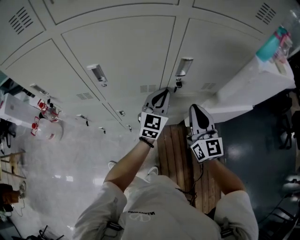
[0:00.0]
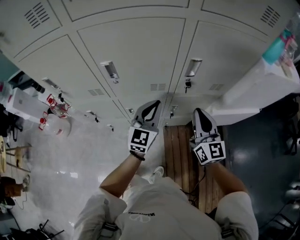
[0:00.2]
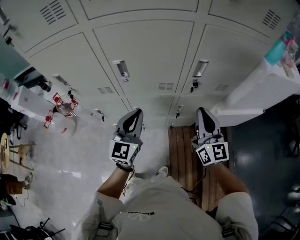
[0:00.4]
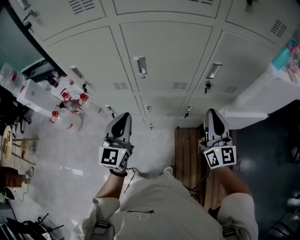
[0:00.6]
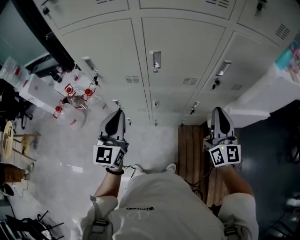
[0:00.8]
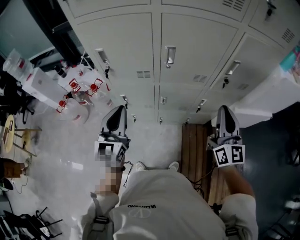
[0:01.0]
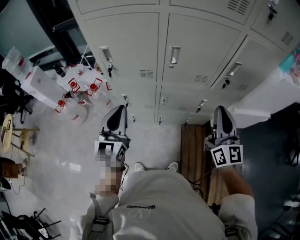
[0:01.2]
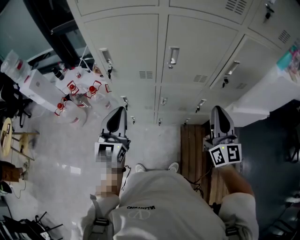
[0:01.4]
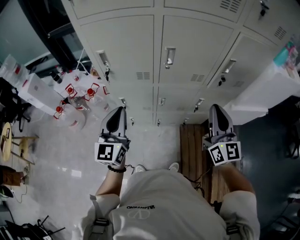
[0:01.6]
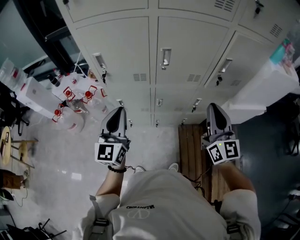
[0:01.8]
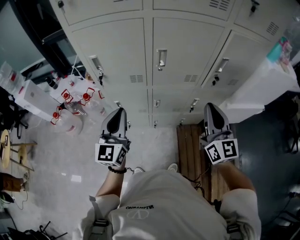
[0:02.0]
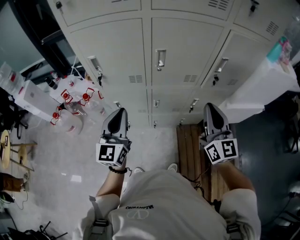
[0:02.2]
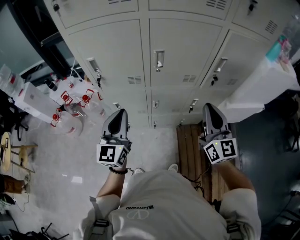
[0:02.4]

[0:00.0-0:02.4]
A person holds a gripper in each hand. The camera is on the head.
0:00.0 to 0:01.2: The left gripper heads to the left and backward, covering roughly 50 cm, and rotates about 20 degrees. Meanwhile the right gripper goes some 20 cm to the left, backward and upward.
0:01.2 to 0:02.4: The grippers stay close to where they were, moving slightly.

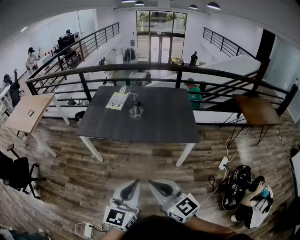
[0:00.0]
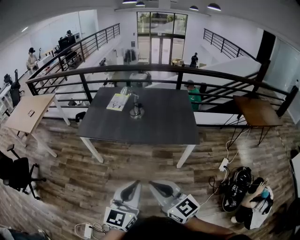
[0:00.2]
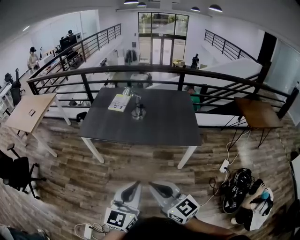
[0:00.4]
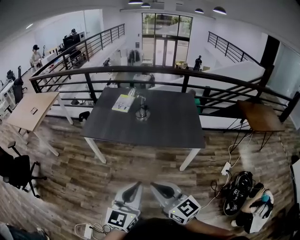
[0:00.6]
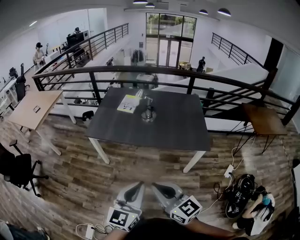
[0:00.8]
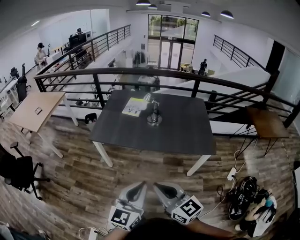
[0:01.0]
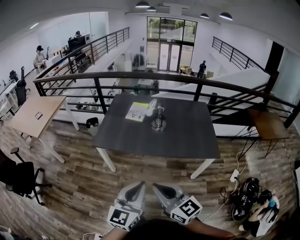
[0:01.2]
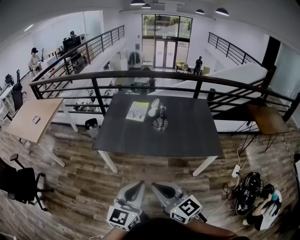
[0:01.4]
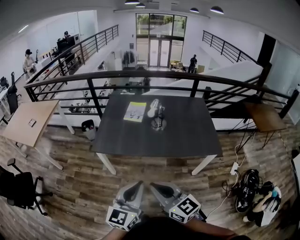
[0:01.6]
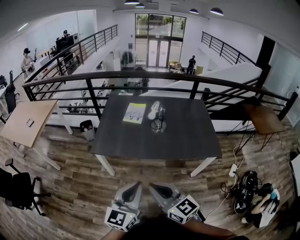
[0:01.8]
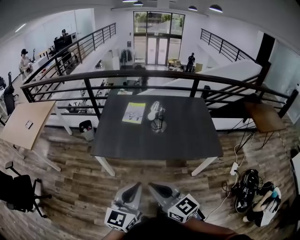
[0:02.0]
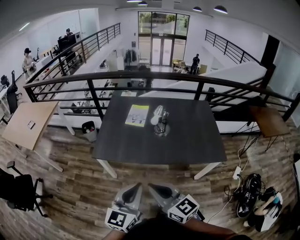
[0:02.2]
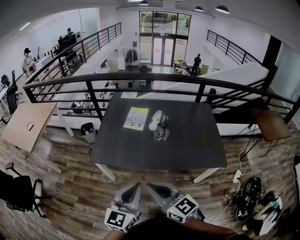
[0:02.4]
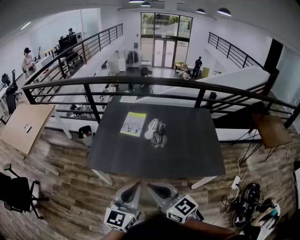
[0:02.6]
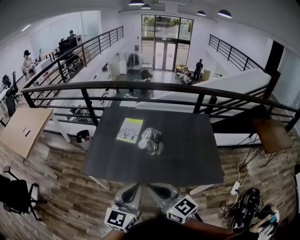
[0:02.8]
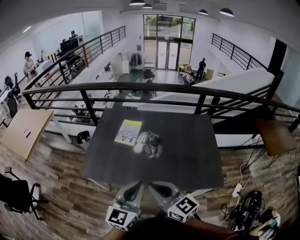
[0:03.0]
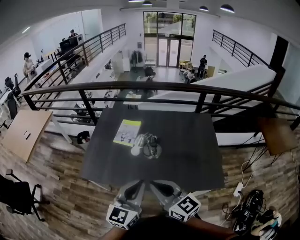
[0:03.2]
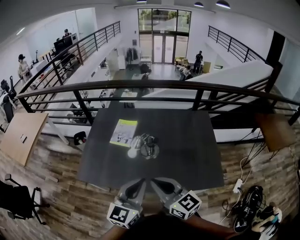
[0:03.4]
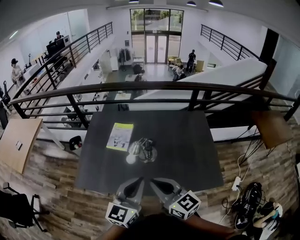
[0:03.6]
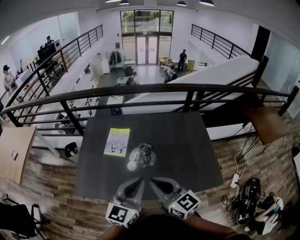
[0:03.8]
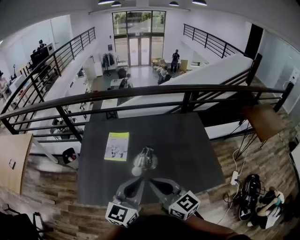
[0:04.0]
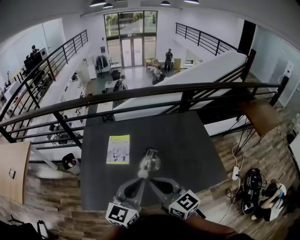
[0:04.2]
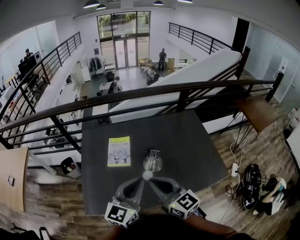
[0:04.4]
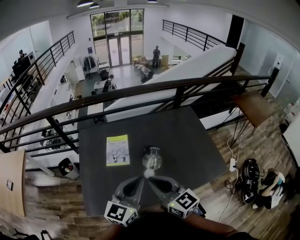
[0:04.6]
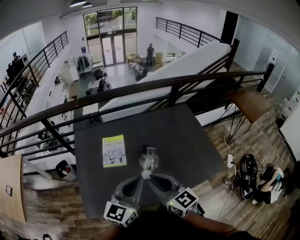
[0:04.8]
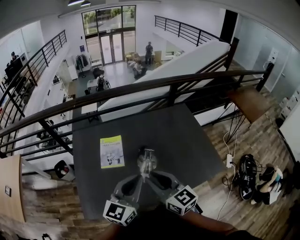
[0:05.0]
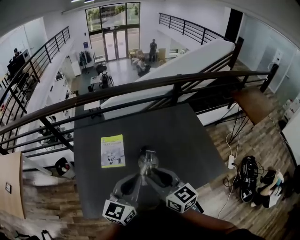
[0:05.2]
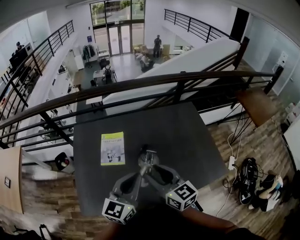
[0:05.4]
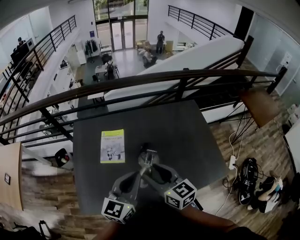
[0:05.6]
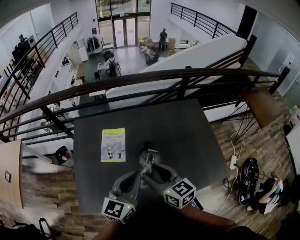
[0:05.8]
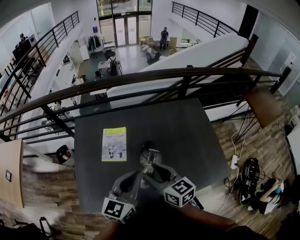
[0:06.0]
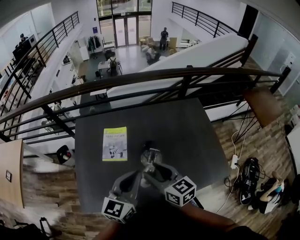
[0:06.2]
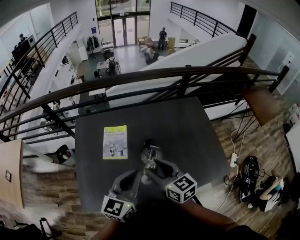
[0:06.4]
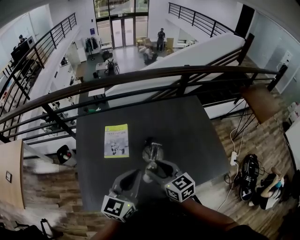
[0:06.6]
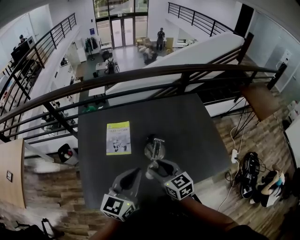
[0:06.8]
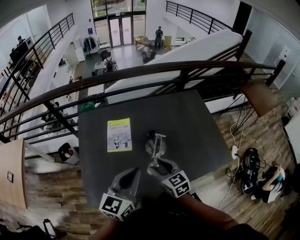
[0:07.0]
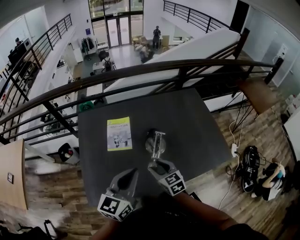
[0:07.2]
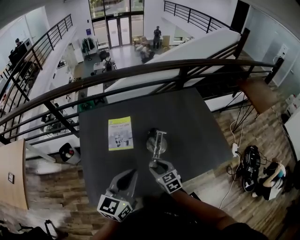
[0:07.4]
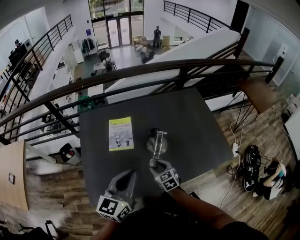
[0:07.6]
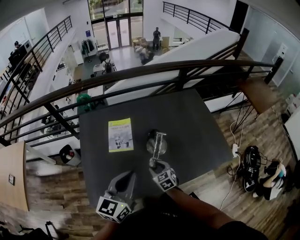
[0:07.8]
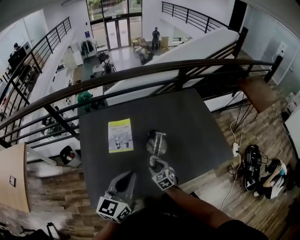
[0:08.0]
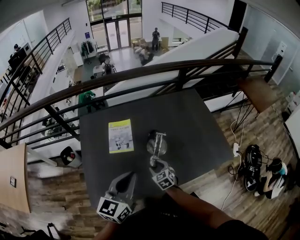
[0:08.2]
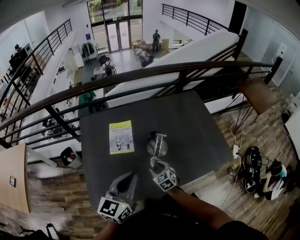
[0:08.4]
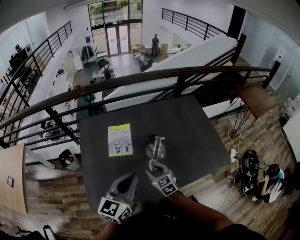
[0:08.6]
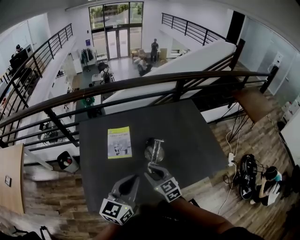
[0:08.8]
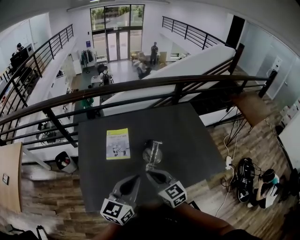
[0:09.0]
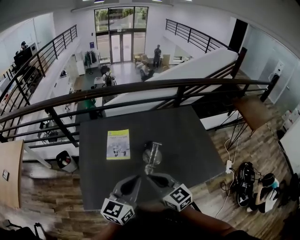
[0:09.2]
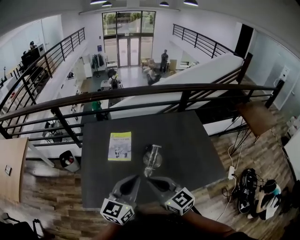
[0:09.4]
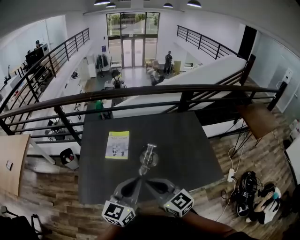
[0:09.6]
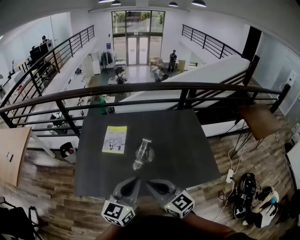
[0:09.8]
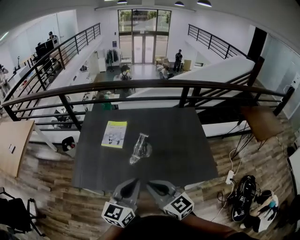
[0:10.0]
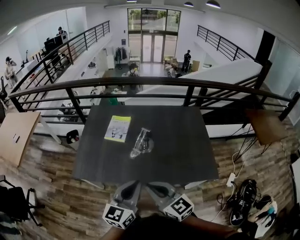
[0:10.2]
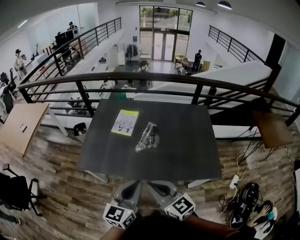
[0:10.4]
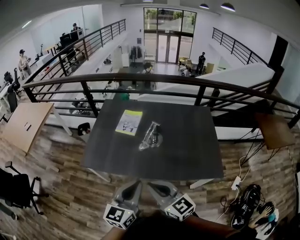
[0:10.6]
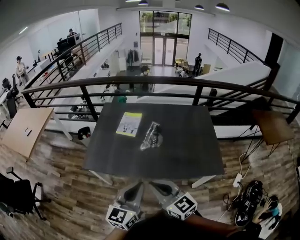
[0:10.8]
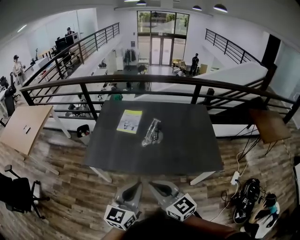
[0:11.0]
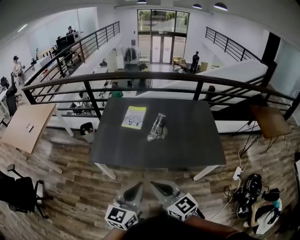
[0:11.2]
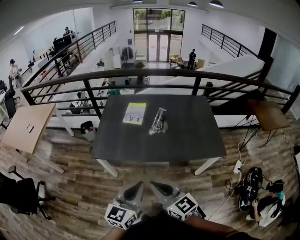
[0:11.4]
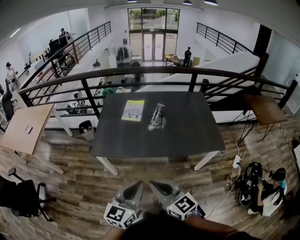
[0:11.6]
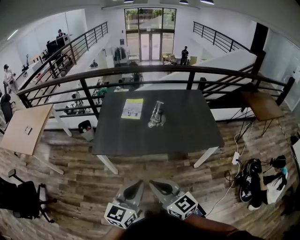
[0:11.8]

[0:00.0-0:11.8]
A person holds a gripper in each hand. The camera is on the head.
0:00.0 to 0:01.4: Both grippers travel together to the left and forward, some 25 cm.
0:01.4 to 0:03.0: Both grippers move forward and to the right, some 30 cm.
0:03.0 to 0:04.4: Both grippers travel together forward, roughly 20 cm. The left gripper changes its angle by about 20 degrees. The right gripper swivels about 20 degrees.
0:04.4 to 0:06.0: The right gripper heads forward and downward, covering roughly 15 cm, and opens up, while the left gripper heads forward, covering some 10 cm.
0:06.0 to 0:07.4: The right gripper shifts roughly 20 cm downward, and rotates roughly 20 degrees, while the left gripper goes approximately 10 cm backward and to the left.
0:07.4 to 0:08.8: The right gripper travels upward by roughly 10 cm.
0:08.8 to 0:10.4: The right gripper goes about 30 cm backward, upward and to the right, turns by approximately 30 degrees, and closes up. Meanwhile the left gripper heads backward and to the right, covering roughly 25 cm, and swivels about 20 degrees.
0:10.4 to 0:11.8: The two grippers go some 25 cm backward and to the left.

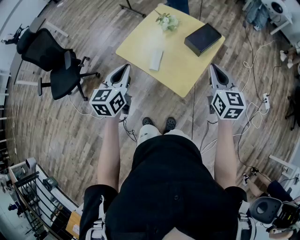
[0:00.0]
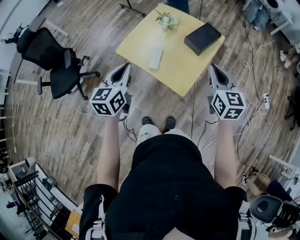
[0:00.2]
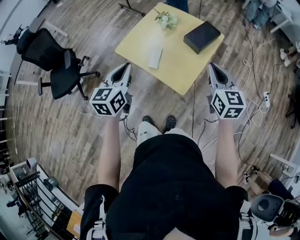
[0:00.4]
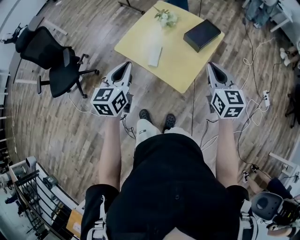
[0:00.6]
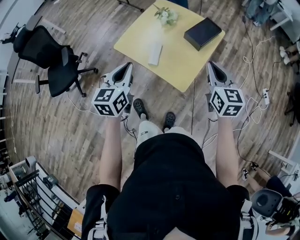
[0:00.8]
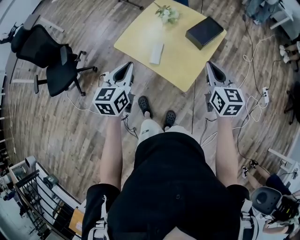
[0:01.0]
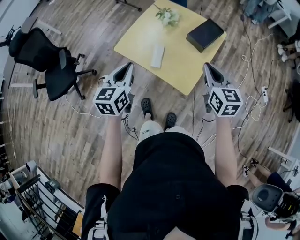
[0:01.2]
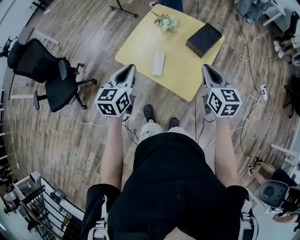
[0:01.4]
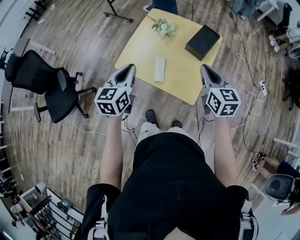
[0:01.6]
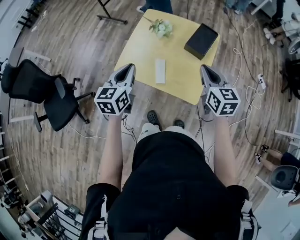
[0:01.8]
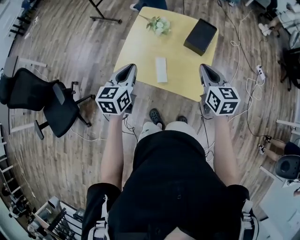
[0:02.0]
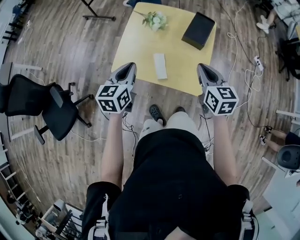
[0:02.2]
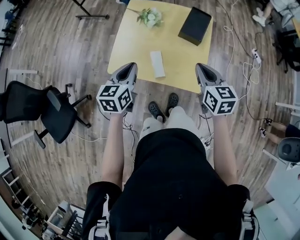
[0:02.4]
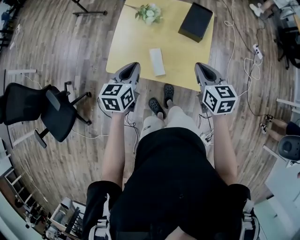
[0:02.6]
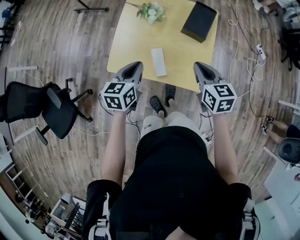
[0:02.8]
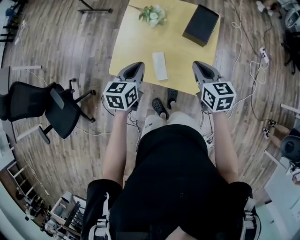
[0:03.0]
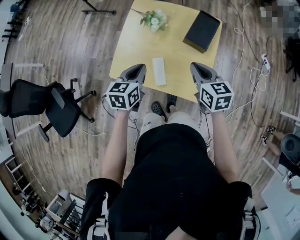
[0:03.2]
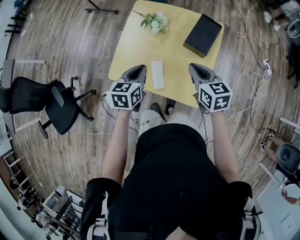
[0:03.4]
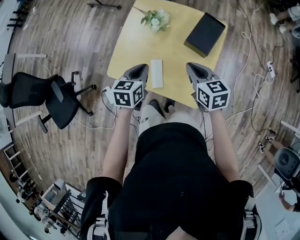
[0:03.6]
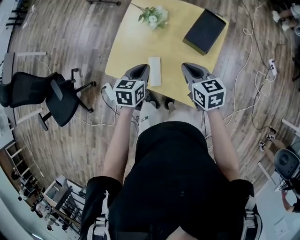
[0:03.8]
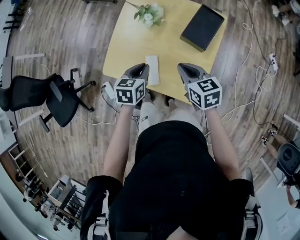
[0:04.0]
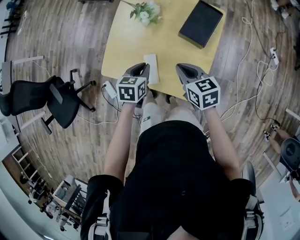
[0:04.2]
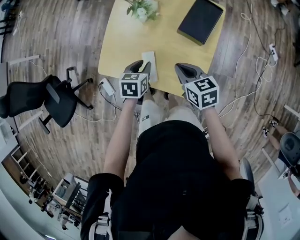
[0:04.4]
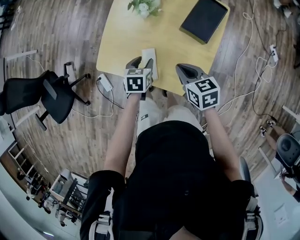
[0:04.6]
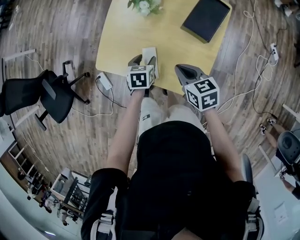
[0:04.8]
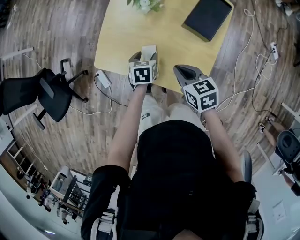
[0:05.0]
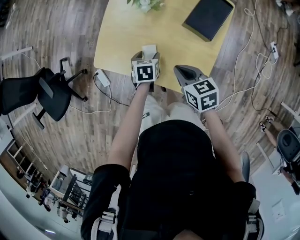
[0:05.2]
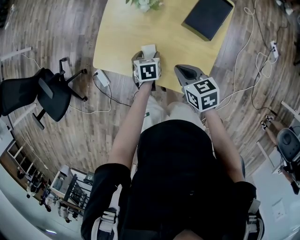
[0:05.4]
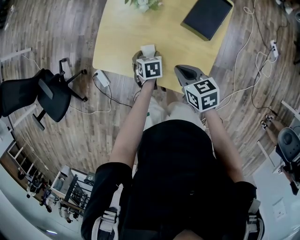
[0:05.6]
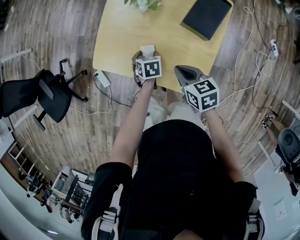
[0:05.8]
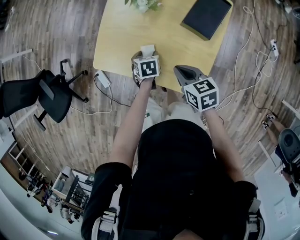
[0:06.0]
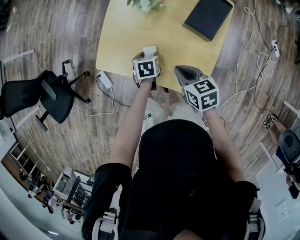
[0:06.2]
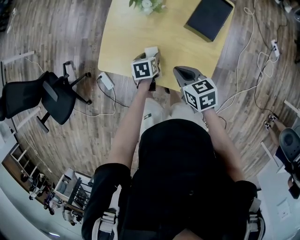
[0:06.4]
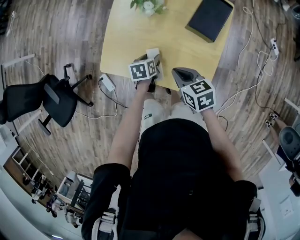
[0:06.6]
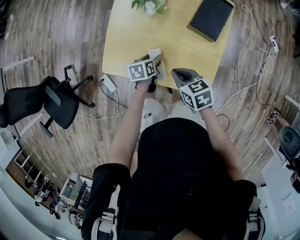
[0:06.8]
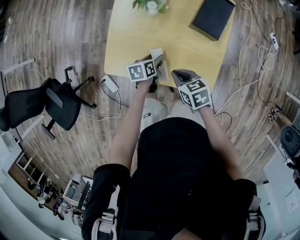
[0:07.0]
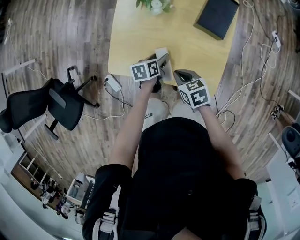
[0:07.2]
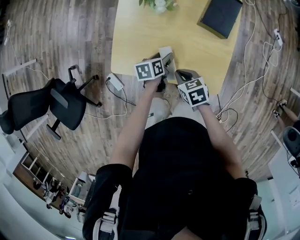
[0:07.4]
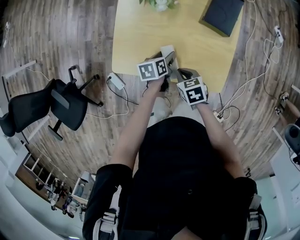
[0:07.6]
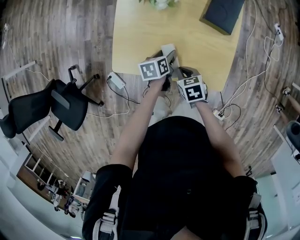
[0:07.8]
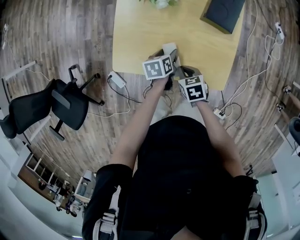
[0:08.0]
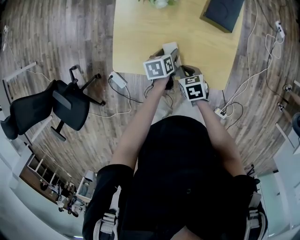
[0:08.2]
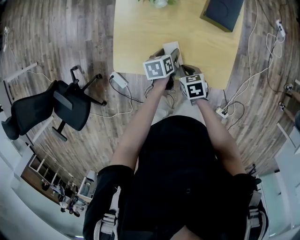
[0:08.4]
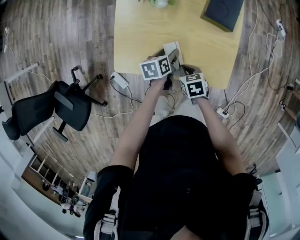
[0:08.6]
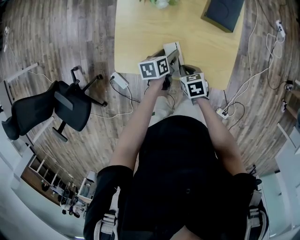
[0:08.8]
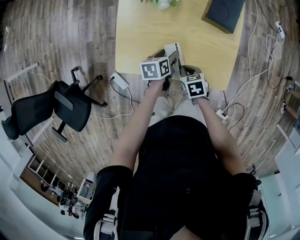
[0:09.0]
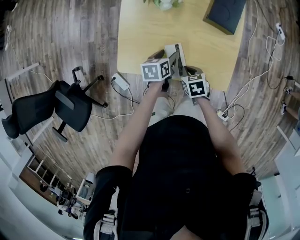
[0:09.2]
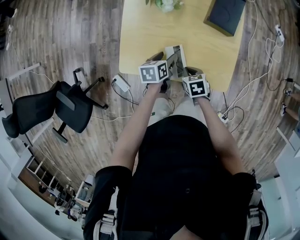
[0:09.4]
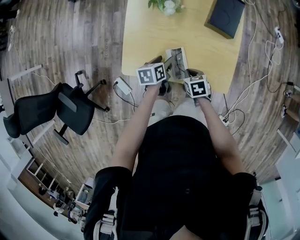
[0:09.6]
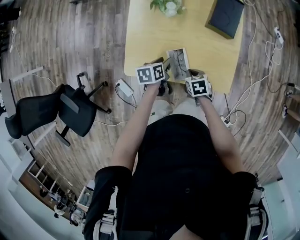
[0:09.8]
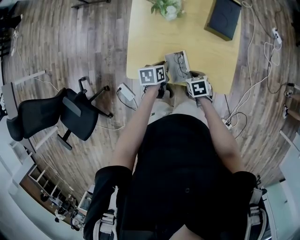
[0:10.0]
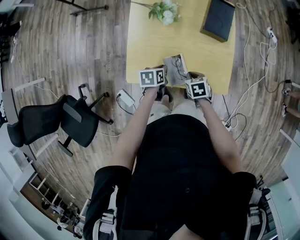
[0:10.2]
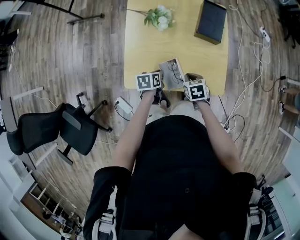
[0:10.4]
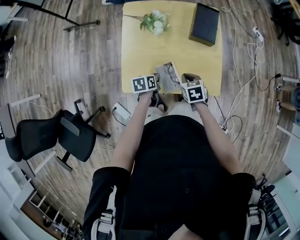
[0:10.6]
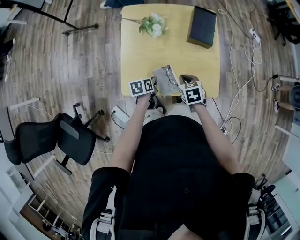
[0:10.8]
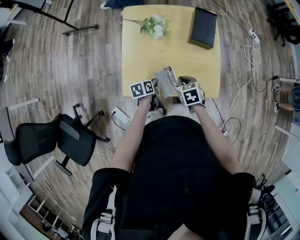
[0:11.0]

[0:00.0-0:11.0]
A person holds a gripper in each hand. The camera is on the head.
0:00.0 to 0:01.6: The left gripper is displaced forward and to the left by roughly 15 cm. Meanwhile the right gripper moves to the left and forward, about 15 cm.
0:01.6 to 0:03.2: The left gripper moves forward and downward, some 20 cm, and swivels roughly 20 degrees. Meanwhile the right gripper heads downward, forward and to the left, covering roughly 15 cm.
0:03.2 to 0:04.8: The left gripper shifts roughly 20 cm downward, swivels approximately 30 degrees, and opens. Meanwhile the right gripper heads downward, covering approximately 15 cm.
0:04.8 to 0:06.2: The left gripper shifts by approximately 5 cm.
0:06.2 to 0:07.8: The left gripper turns by some 20 degrees. The right gripper heads downward and to the left, covering about 15 cm, and turns by roughly 20 degrees.
0:07.8 to 0:09.4: The grippers stay close to where they were, moving slightly.
0:09.4 to 0:11.0: The right gripper is displaced upward by approximately 10 cm; the left gripper heads to the left and backward, covering about 10 cm, and closes its fingers.
